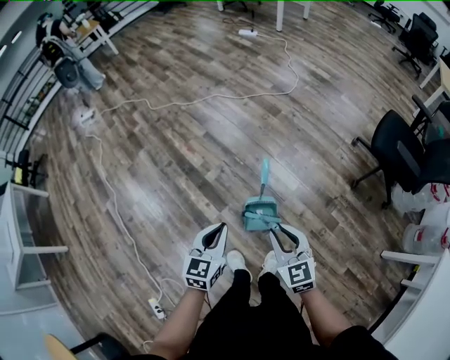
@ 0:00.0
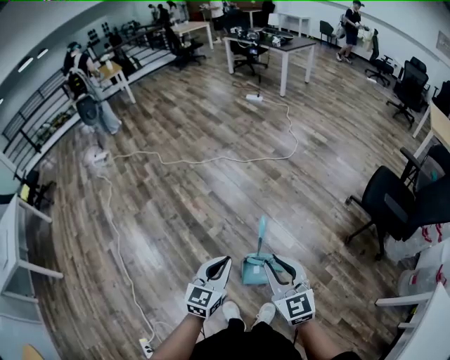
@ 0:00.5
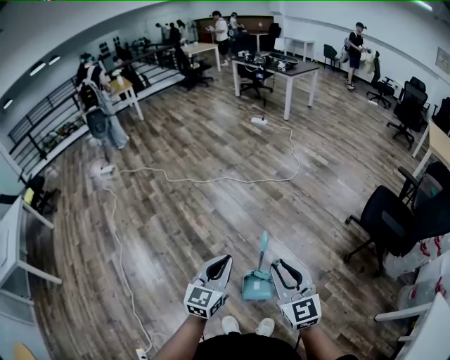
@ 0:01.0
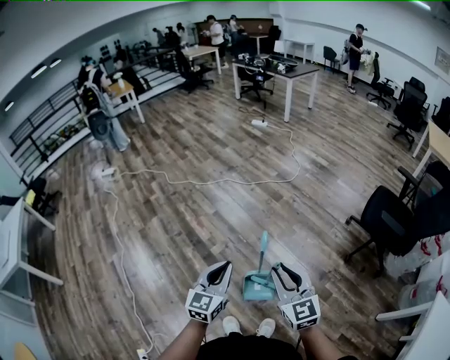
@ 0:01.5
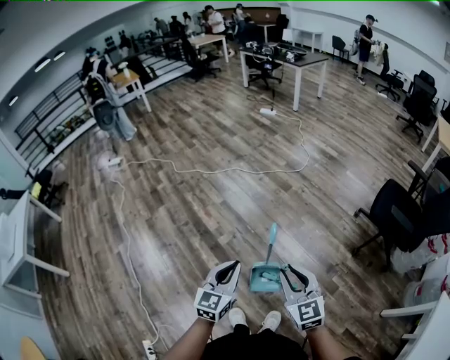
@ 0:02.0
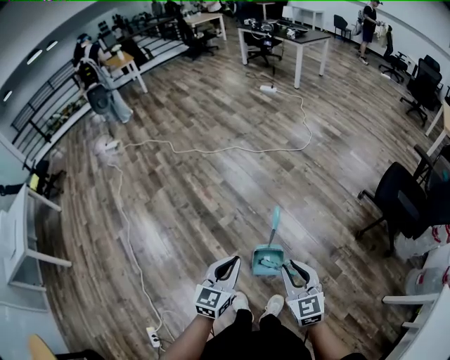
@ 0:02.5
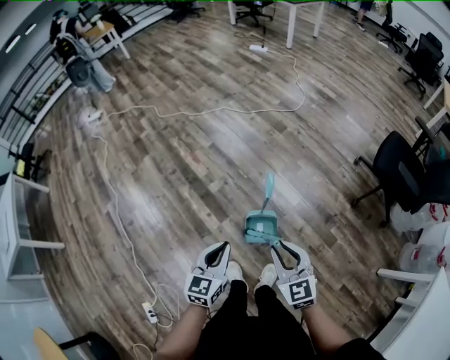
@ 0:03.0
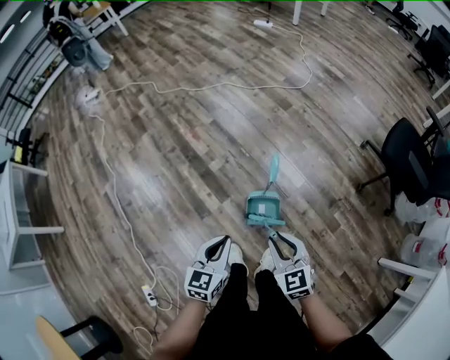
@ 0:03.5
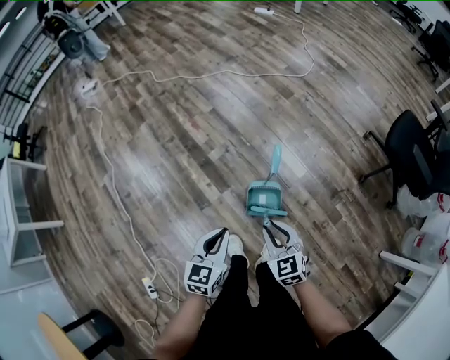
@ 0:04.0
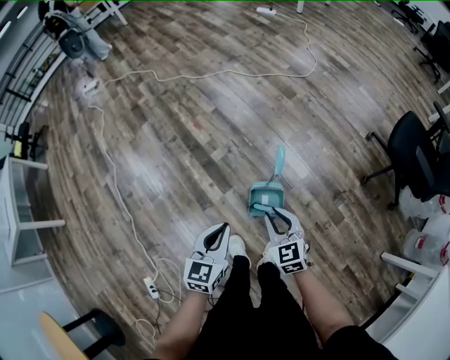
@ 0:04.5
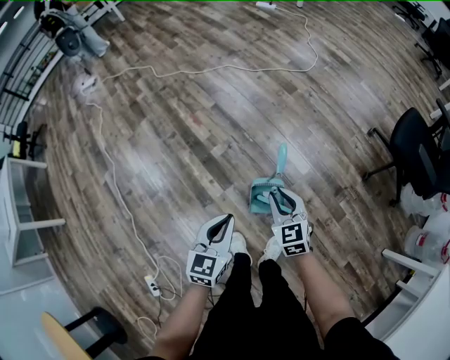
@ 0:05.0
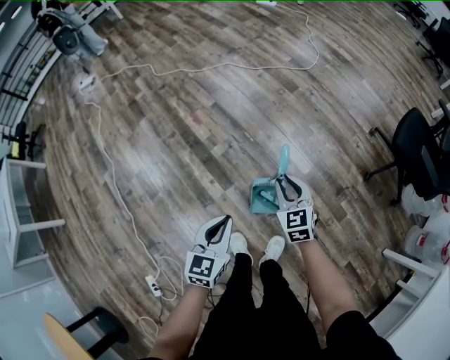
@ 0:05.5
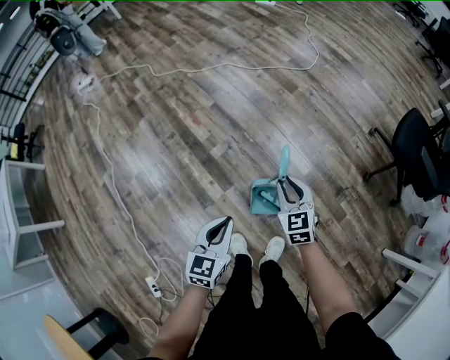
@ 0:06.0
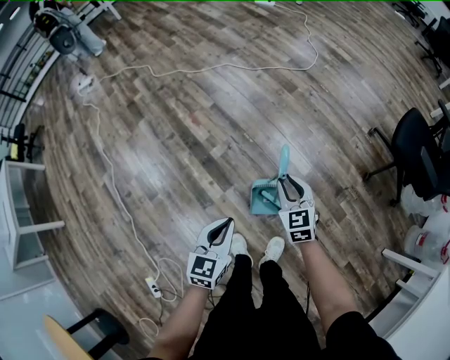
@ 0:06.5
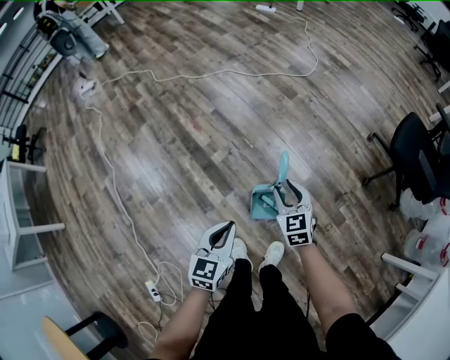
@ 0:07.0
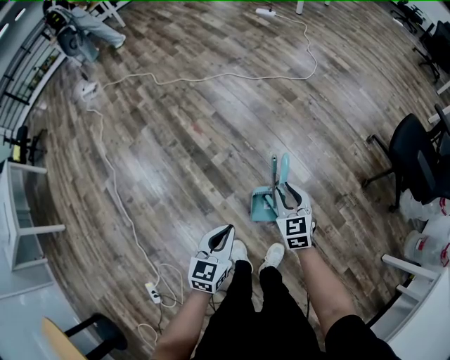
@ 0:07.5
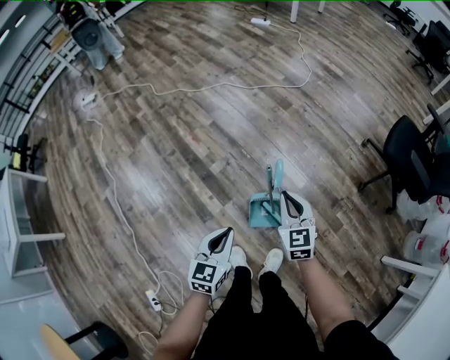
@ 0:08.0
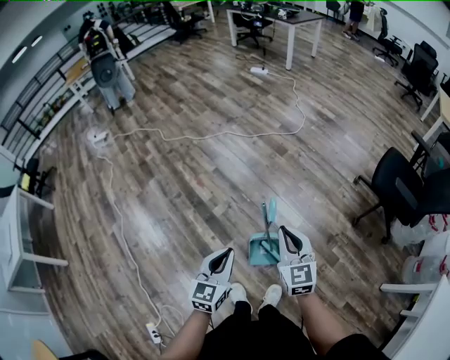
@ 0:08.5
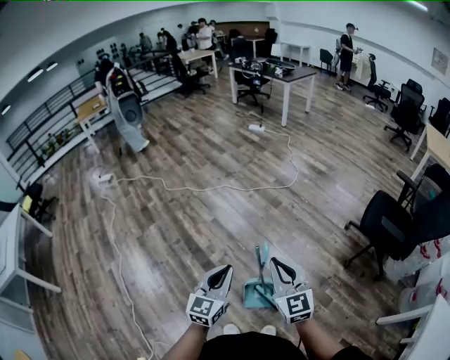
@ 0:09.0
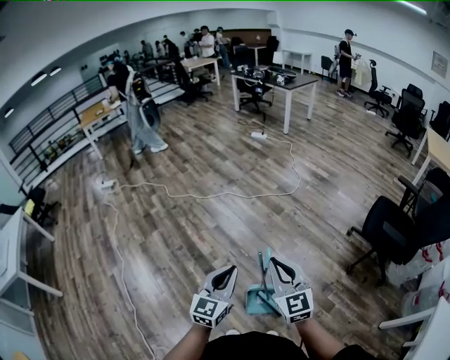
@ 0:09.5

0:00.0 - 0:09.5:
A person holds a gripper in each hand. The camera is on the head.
0:00.0 - 0:02.0: The grippers both shift upward by about 10 cm.
0:02.0 - 0:04.0: Both grippers move downward, about 15 cm. The right gripper changes its angle by some 20 degrees.
0:04.0 - 0:05.5: The left gripper moves forward, approximately 5 cm. Meanwhile the right gripper shifts about 15 cm forward.
0:05.5 - 0:07.5: There are only small adjustments of the grippers.
0:07.5 - 0:09.5: The two grippers go some 25 cm upward. The right gripper changes its angle by roughly 30 degrees, and closes; the left gripper rotates about 30 degrees.

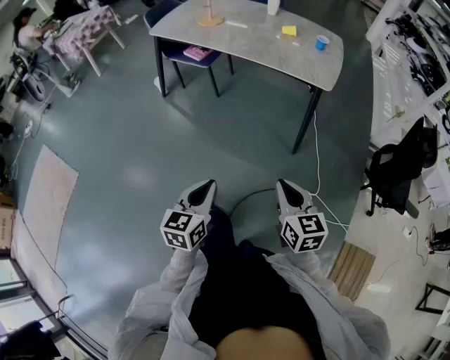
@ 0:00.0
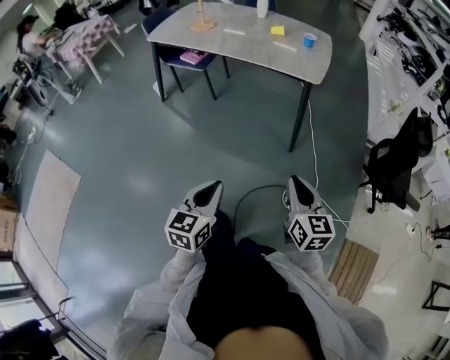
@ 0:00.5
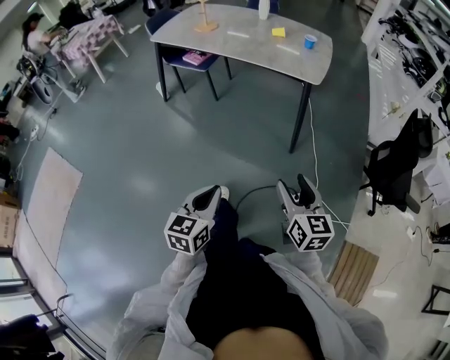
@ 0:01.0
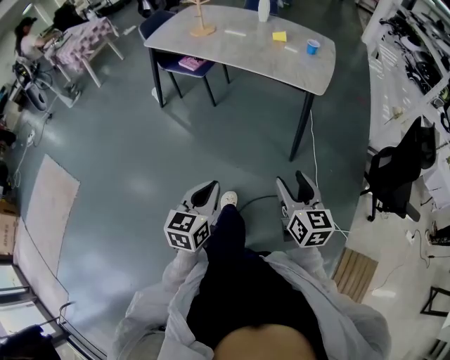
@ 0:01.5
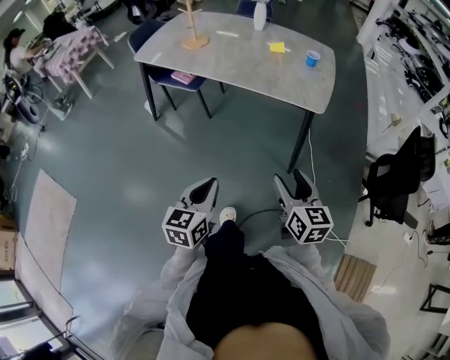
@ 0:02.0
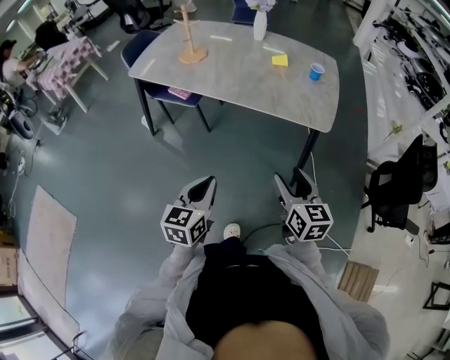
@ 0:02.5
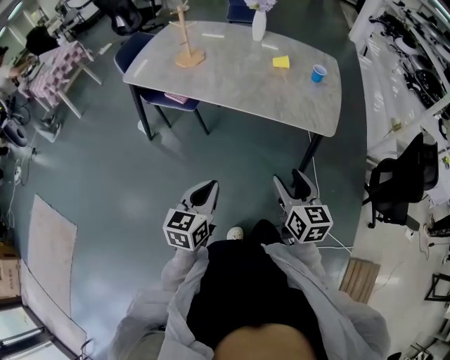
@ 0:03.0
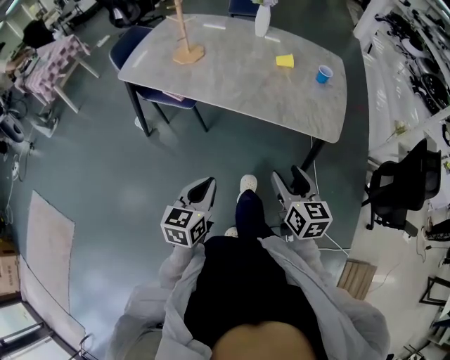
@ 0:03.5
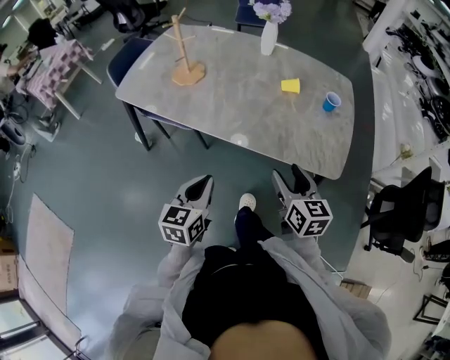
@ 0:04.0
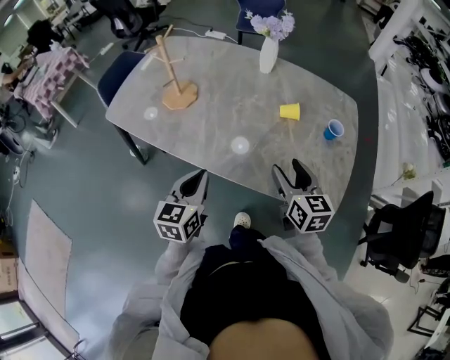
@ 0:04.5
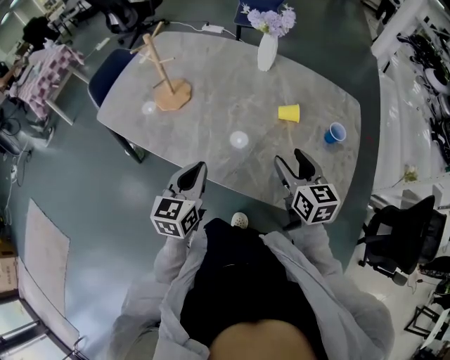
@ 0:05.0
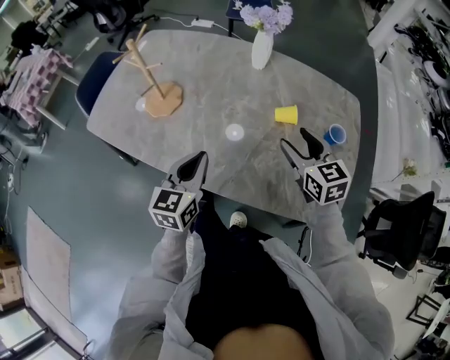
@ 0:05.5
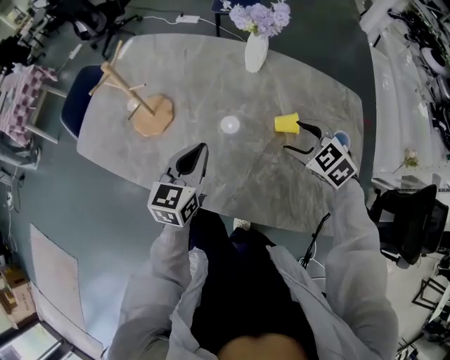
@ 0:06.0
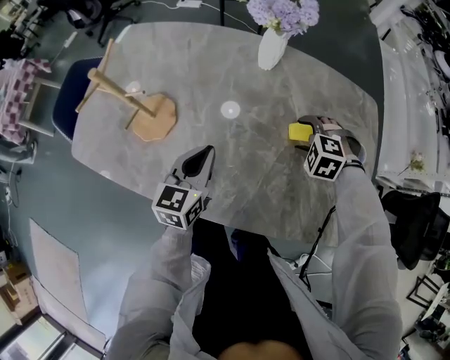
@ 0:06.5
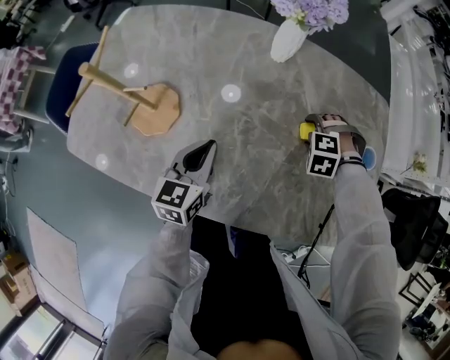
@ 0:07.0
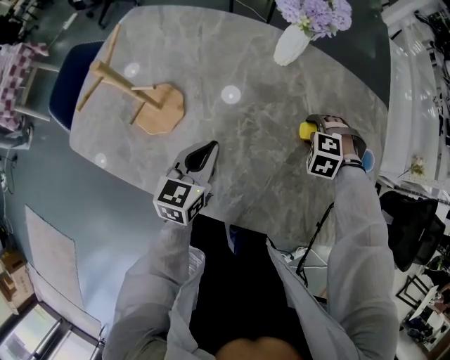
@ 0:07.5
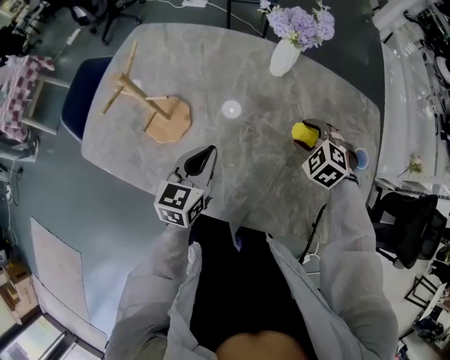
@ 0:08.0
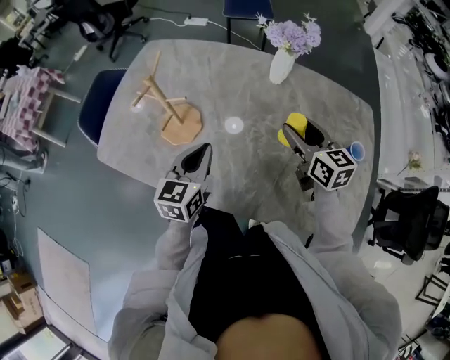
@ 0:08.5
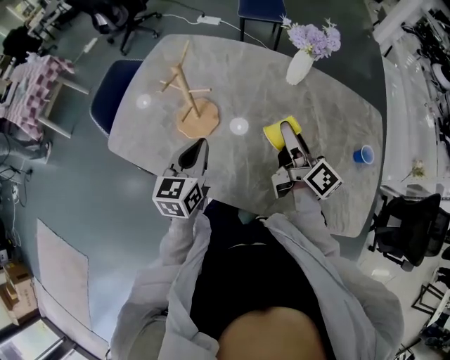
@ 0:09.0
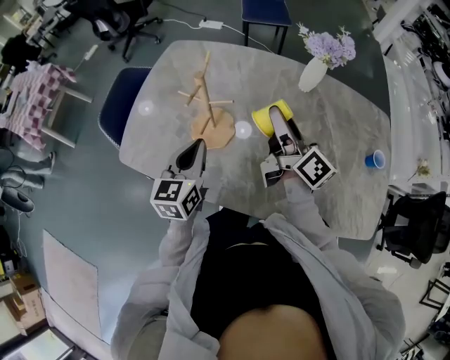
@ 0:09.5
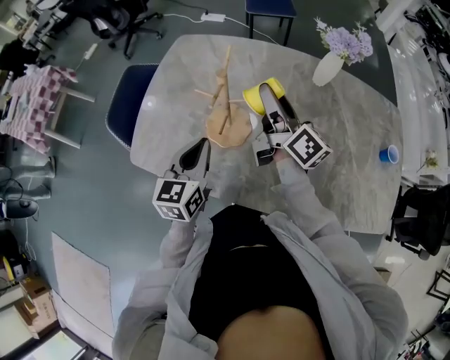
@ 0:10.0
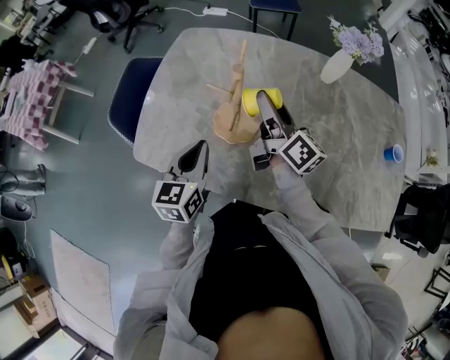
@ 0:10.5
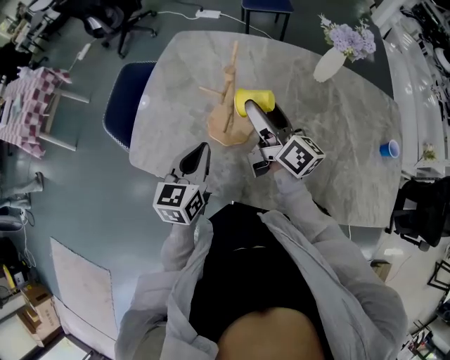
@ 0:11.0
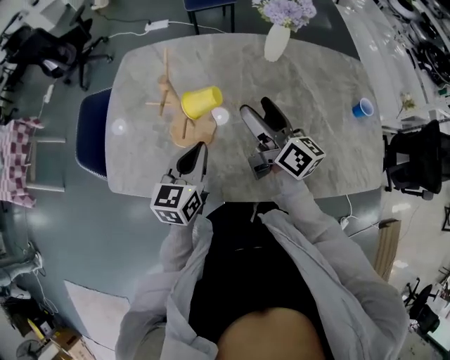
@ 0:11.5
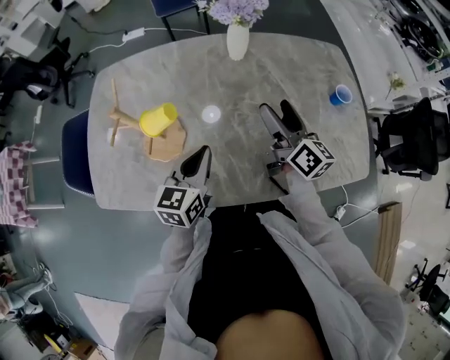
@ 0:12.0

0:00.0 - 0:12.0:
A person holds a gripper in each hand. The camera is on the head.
0:00.0 - 0:02.0: The grippers both shift forward by some 15 cm. The right gripper opens.
0:02.0 - 0:04.0: Both grippers move forward, approximately 35 cm.
0:04.0 - 0:06.0: The two grippers go roughly 35 cm forward. The right gripper twists roughly 40 degrees counterclockwise, seen from behind.
0:06.0 - 0:08.0: The left gripper ends up approximately 10 cm from where it was. Meanwhile the right gripper changes its angle by approximately 20 degrees.
0:08.0 - 0:10.0: The right gripper shifts about 35 cm to the left and upward, and points its fingers about 70 degrees further upward. The left gripper travels to the left by approximately 20 cm.
0:10.0 - 0:12.0: Both grippers travel together to the right, approximately 20 cm. The left gripper rotates about 20 degrees. Meanwhile the right gripper turns by about 20 degrees, and opens its fingers.

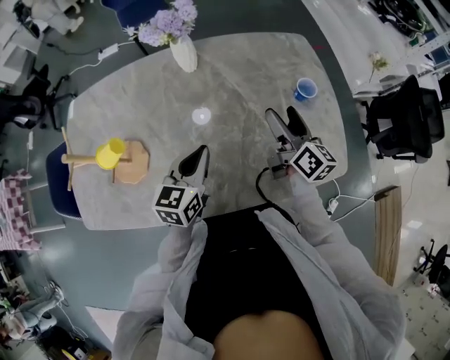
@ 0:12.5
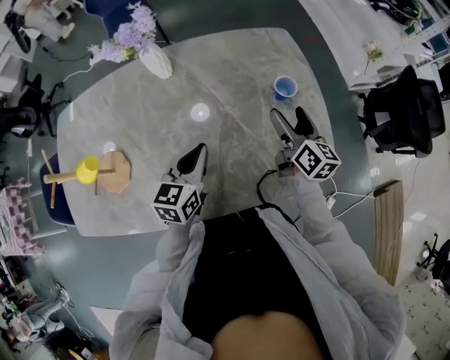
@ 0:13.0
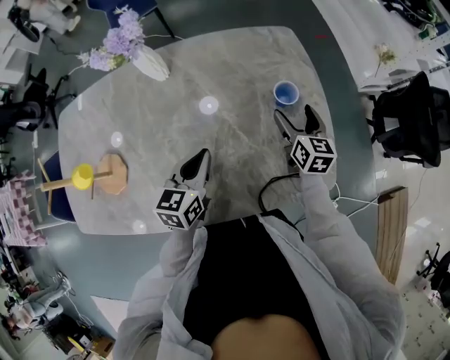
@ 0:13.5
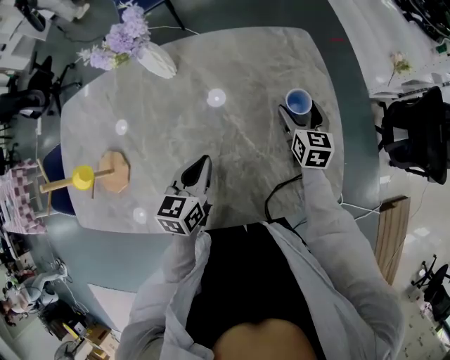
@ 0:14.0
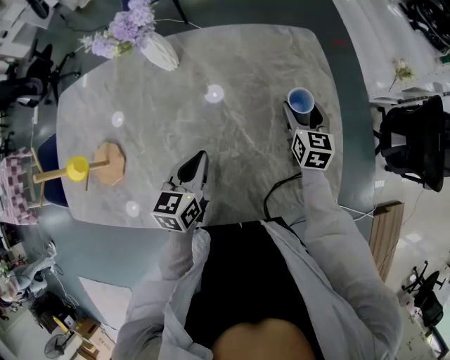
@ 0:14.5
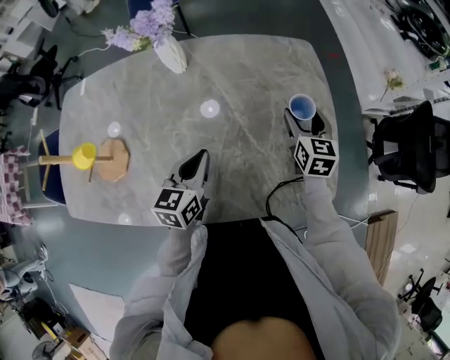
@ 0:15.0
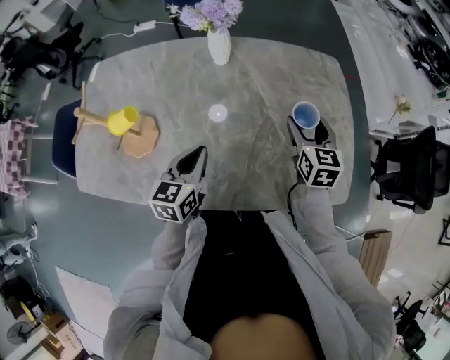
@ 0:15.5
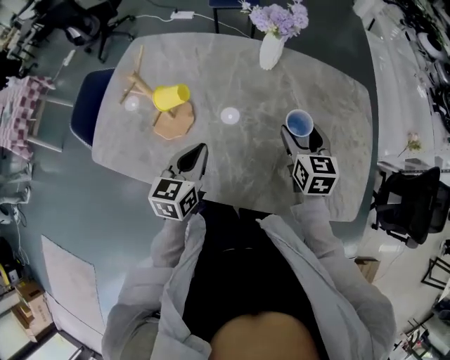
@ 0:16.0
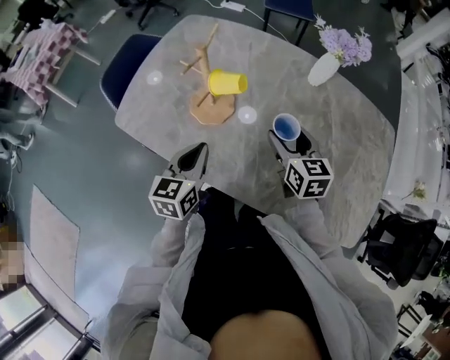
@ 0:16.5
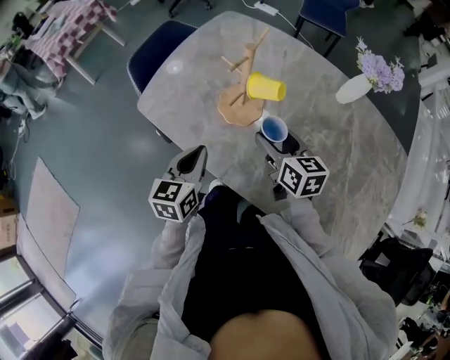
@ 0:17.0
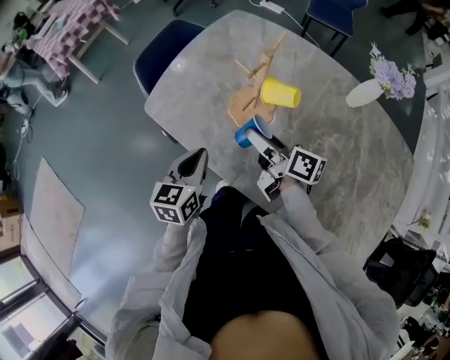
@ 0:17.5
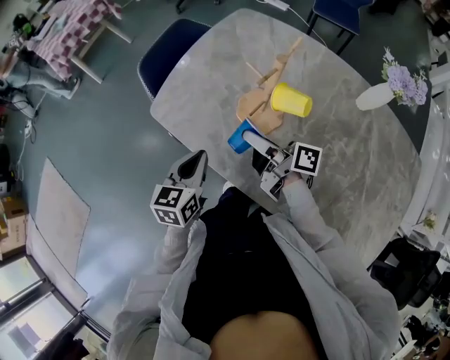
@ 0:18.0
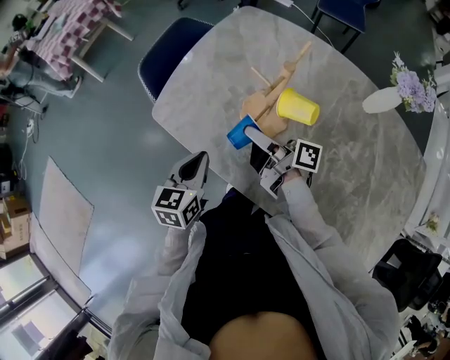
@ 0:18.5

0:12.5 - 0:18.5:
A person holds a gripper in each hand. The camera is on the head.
0:12.5 - 0:14.5: The right gripper heads downward, forward and to the right, covering roughly 25 cm, and swivels some 40 degrees, while the left gripper moves to the right, downward and forward, roughly 10 cm.
0:14.5 - 0:16.5: The right gripper shifts by approximately 50 cm, and changes its angle by about 40 degrees; the left gripper moves approximately 35 cm, and changes its angle by about 30 degrees.
0:16.5 - 0:18.5: The left gripper shifts by about 15 cm. Meanwhile the right gripper shifts by roughly 25 cm, and points its fingers approximately 30 degrees further upward.
